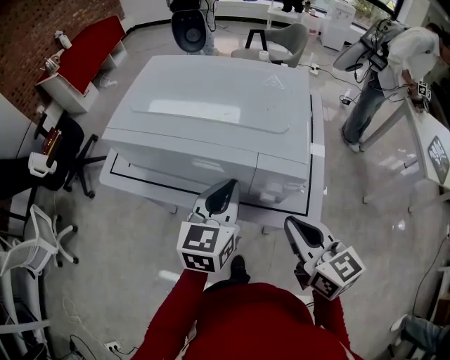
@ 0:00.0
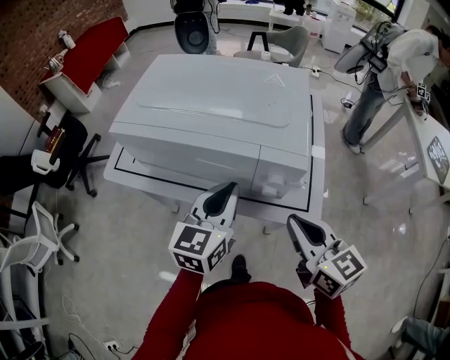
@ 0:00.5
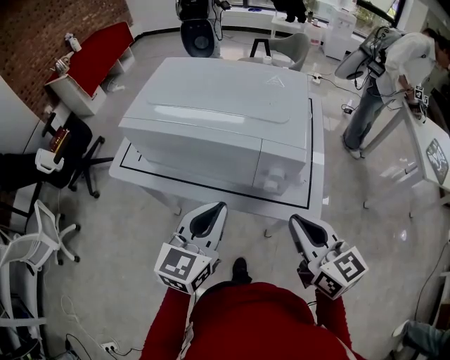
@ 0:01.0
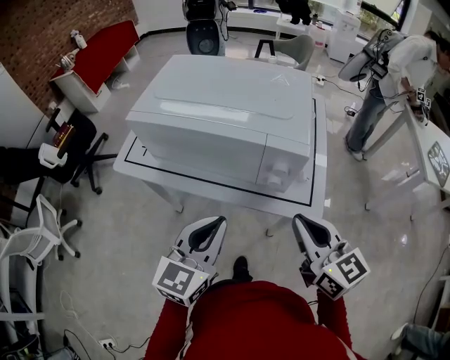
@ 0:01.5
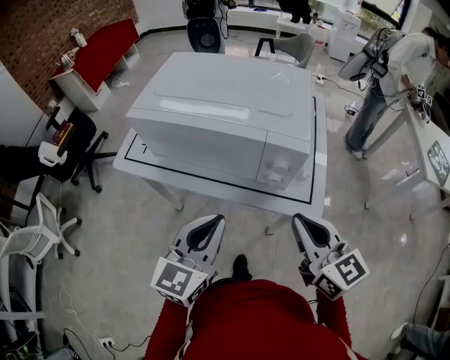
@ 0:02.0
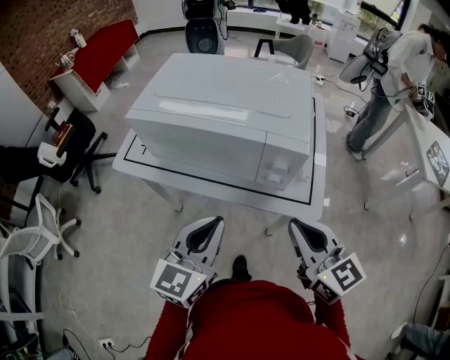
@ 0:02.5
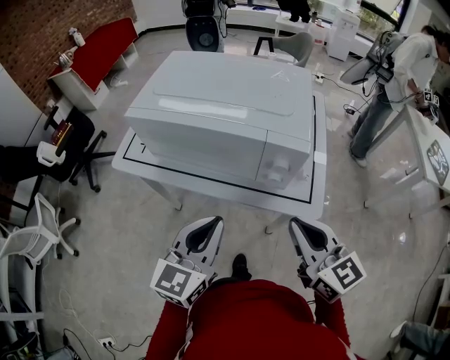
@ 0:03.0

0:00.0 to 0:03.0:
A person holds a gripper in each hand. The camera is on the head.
0:00.0 to 0:01.5: The left gripper moves backward, approximately 15 cm.
0:01.5 to 0:03.0: There are only small adjustments of the grippers.

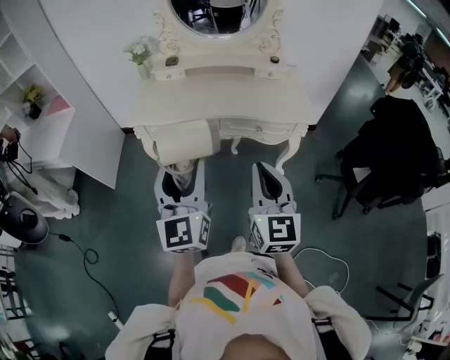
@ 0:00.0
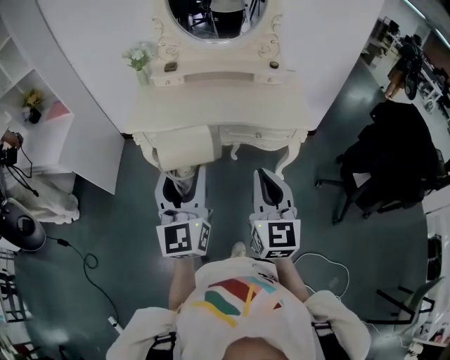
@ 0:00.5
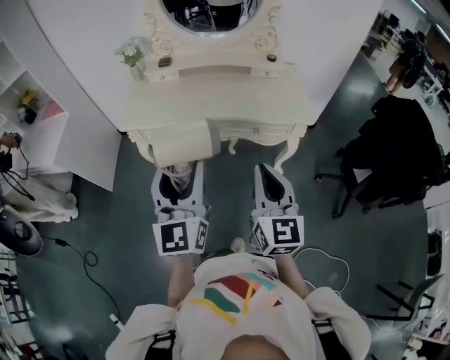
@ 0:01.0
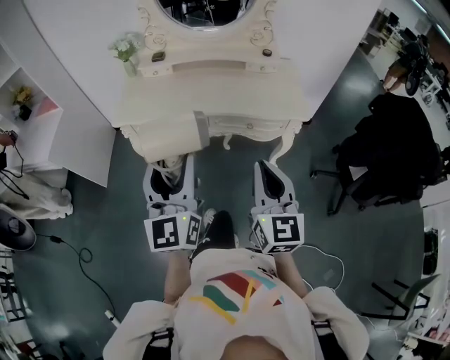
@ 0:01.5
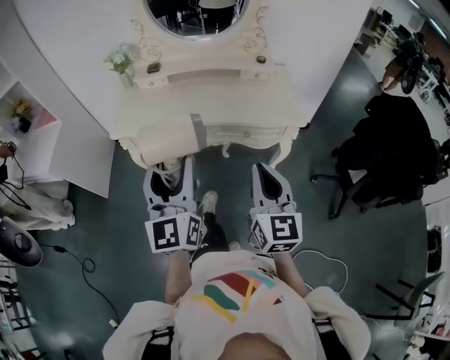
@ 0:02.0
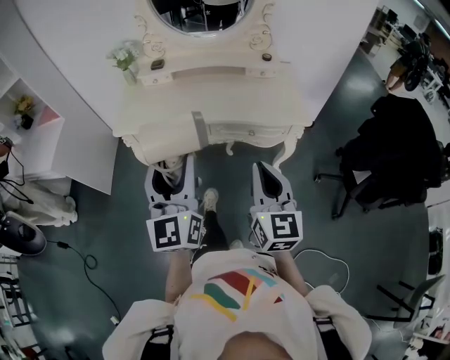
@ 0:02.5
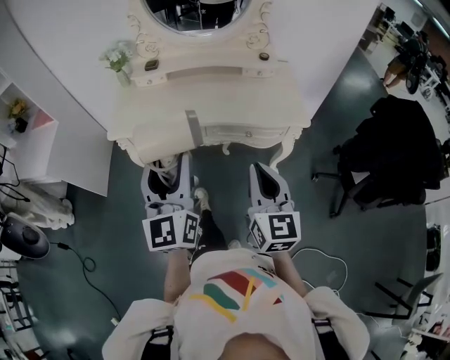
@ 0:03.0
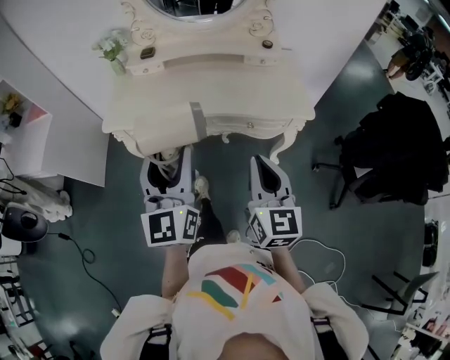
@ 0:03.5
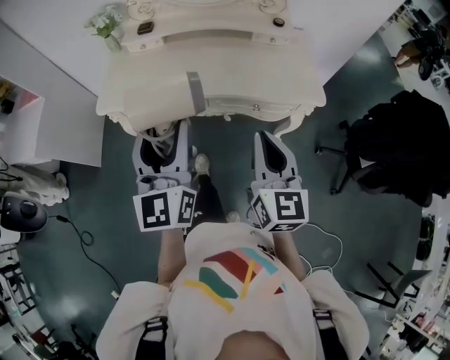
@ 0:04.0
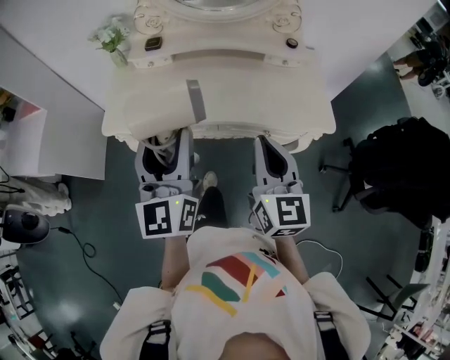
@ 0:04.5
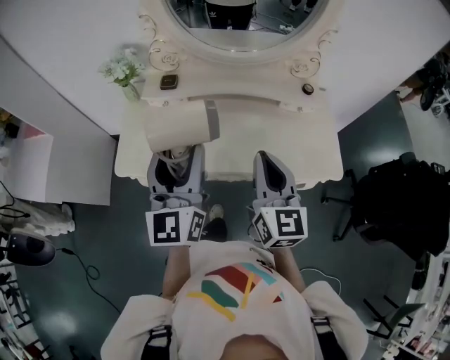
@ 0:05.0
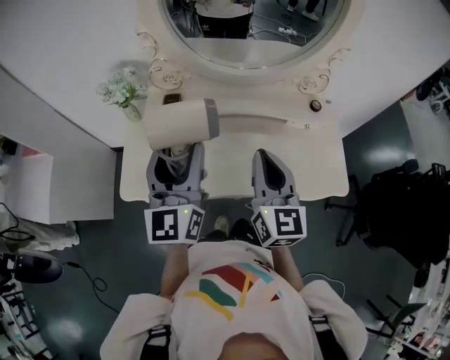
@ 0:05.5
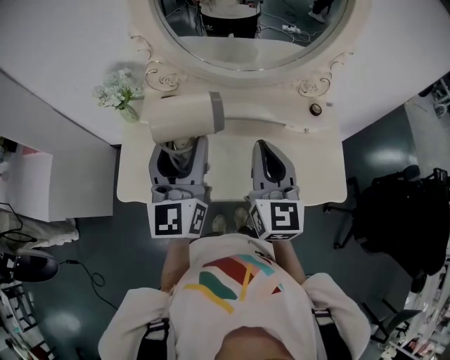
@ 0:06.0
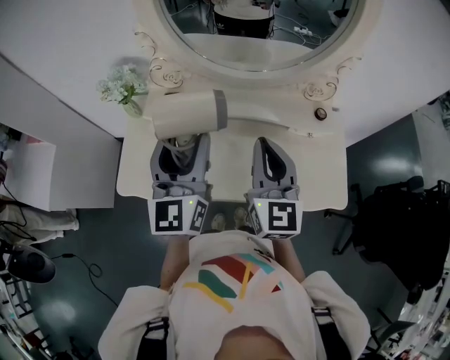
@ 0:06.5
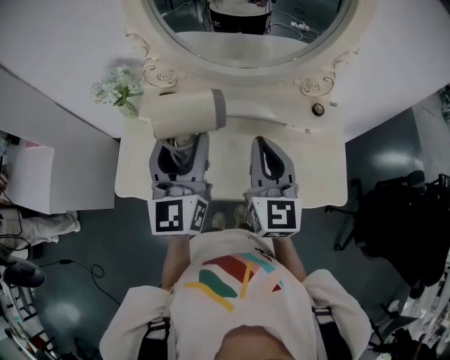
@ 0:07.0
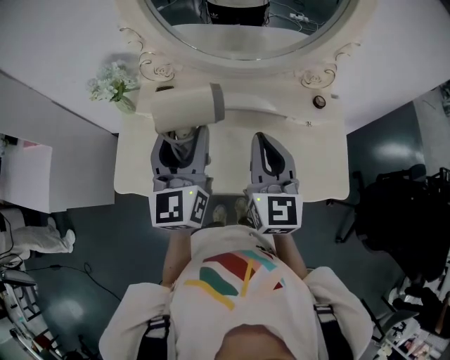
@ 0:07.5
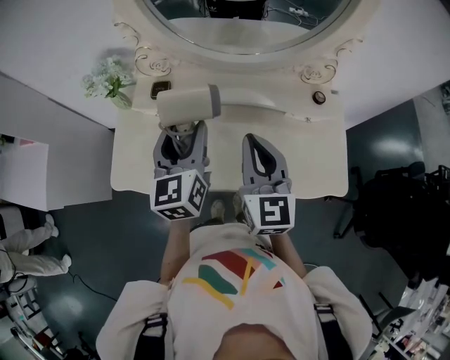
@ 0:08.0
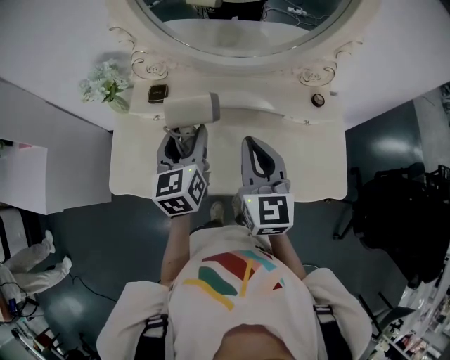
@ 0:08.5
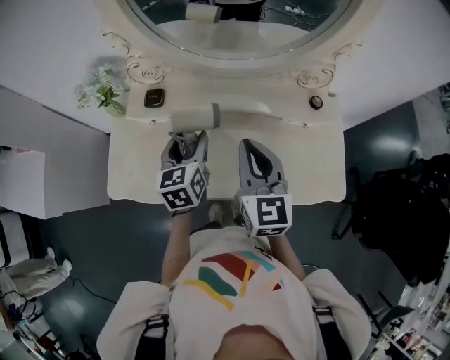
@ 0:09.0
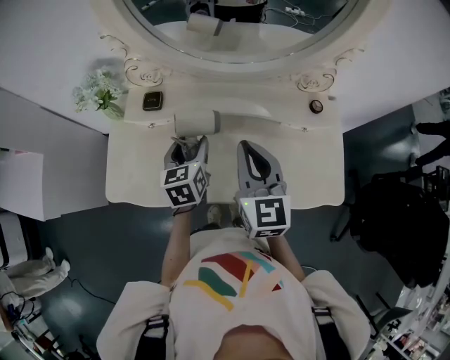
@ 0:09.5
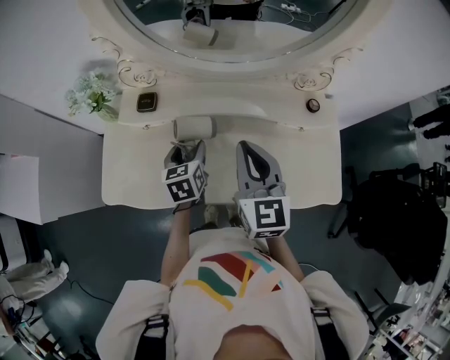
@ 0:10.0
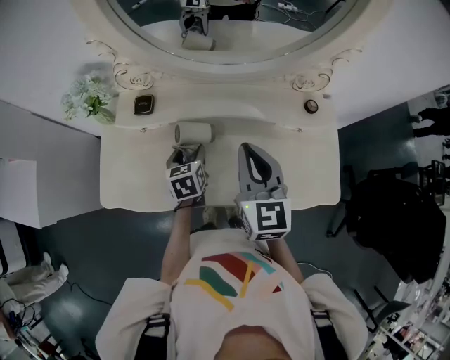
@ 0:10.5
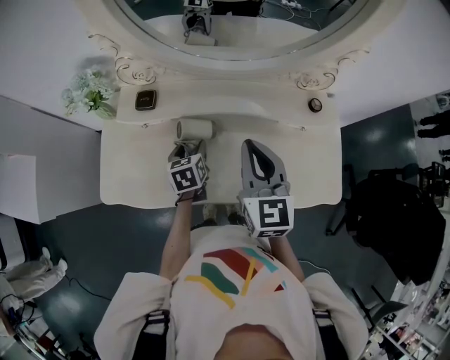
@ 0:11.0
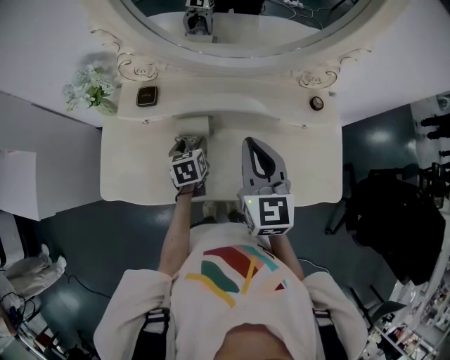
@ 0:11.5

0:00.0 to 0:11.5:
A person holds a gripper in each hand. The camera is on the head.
0:00.0 to 0:02.0: The left gripper moves forward, some 5 cm. The right gripper is displaced to the right by about 5 cm.
0:02.0 to 0:04.0: Both grippers travel together forward, about 10 cm.
0:04.0 to 0:06.0: The grippers both shift forward by roughly 35 cm.
0:06.0 to 0:07.5: There are only small adjustments of the grippers.
0:07.5 to 0:09.5: The right gripper shifts by some 5 cm; the left gripper shifts about 20 cm downward, and tips its fingers downward by some 40 degrees.
0:09.5 to 0:11.5: The left gripper is displaced downward by about 10 cm.

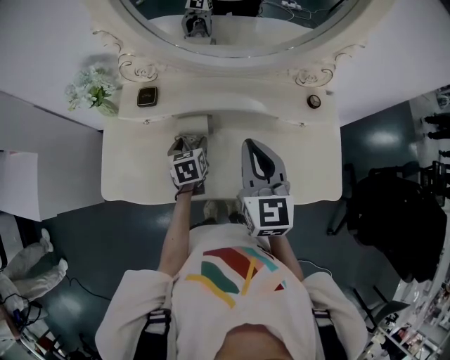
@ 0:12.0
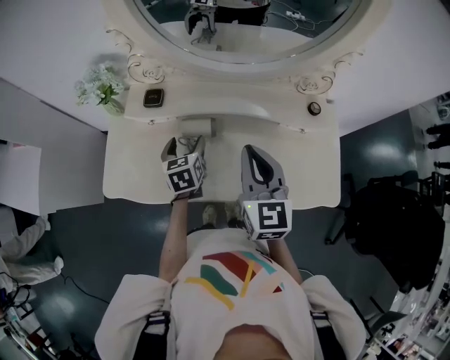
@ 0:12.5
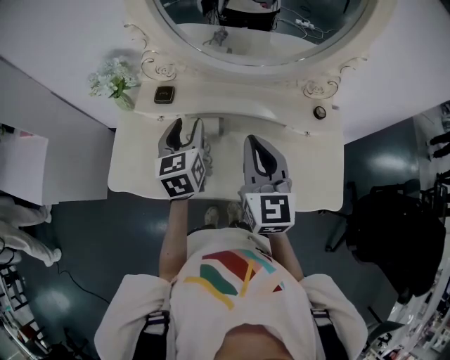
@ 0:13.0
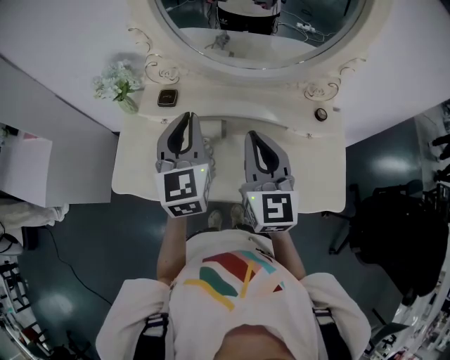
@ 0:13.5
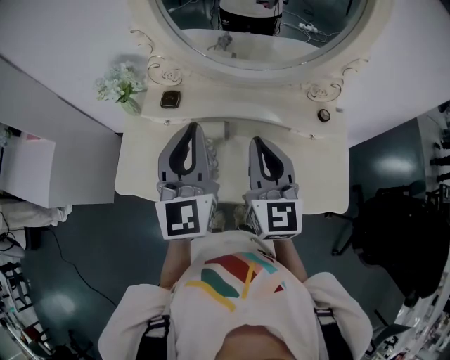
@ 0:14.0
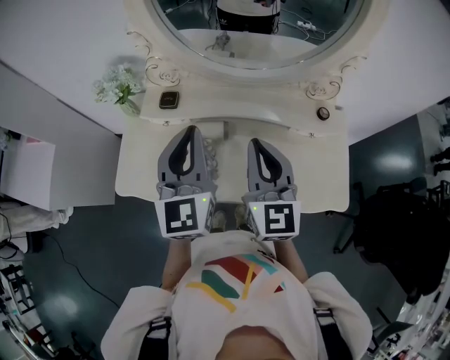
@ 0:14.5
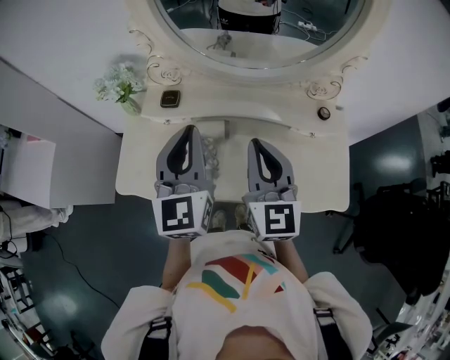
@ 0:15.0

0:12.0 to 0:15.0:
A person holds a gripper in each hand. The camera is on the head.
0:12.0 to 0:13.5: The left gripper moves upward, approximately 30 cm, tilts its fingers some 40 degrees upward, and closes up. The right gripper is displaced upward by roughly 5 cm.
0:13.5 to 0:15.0: The left gripper shifts by approximately 5 cm.

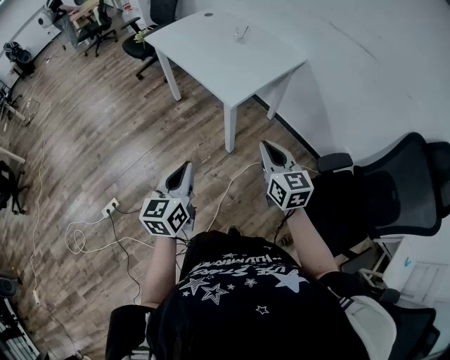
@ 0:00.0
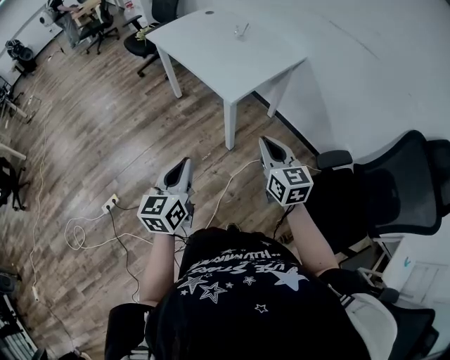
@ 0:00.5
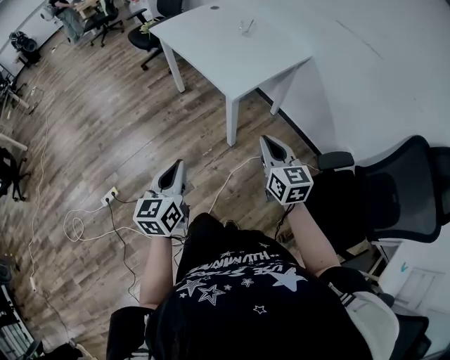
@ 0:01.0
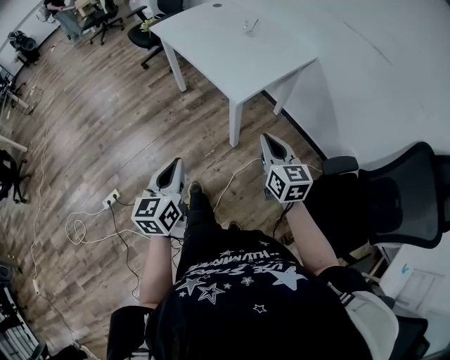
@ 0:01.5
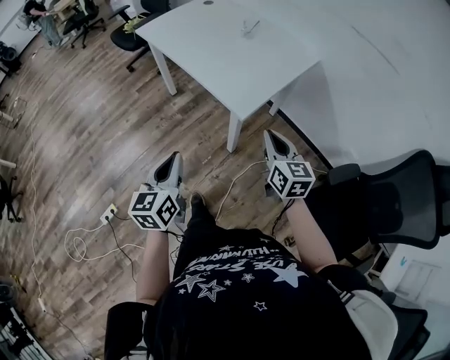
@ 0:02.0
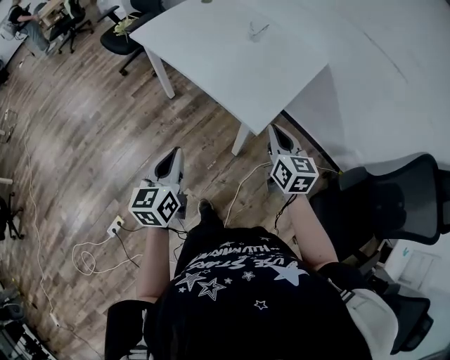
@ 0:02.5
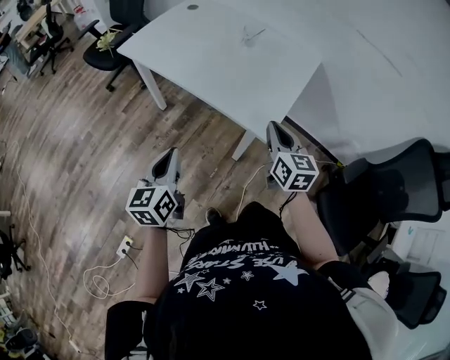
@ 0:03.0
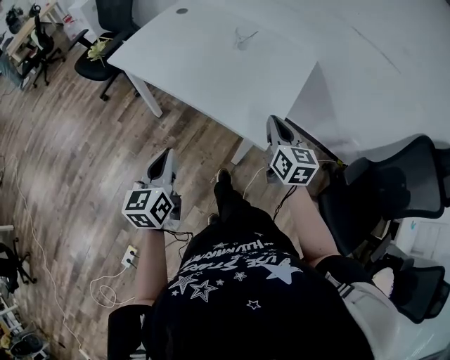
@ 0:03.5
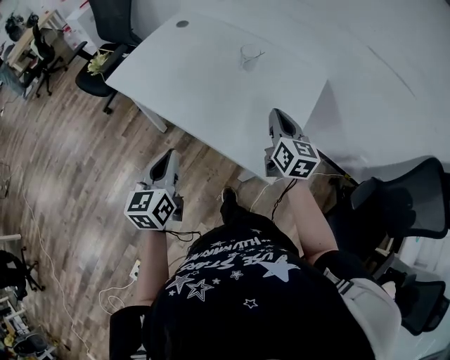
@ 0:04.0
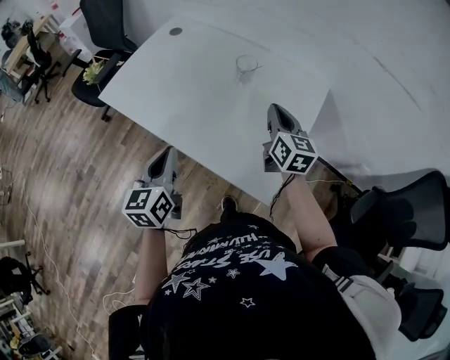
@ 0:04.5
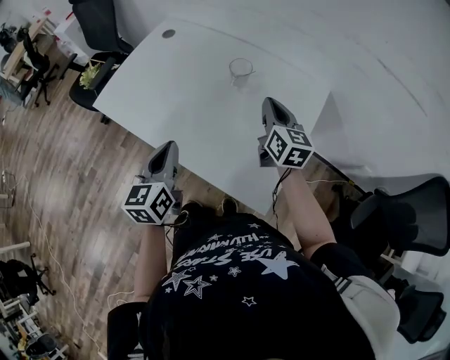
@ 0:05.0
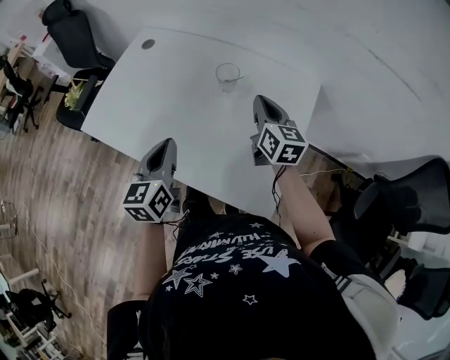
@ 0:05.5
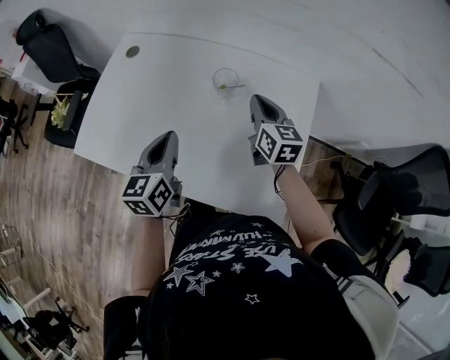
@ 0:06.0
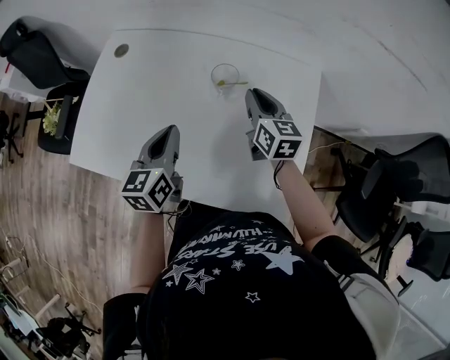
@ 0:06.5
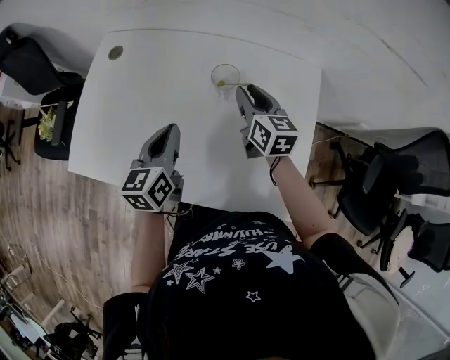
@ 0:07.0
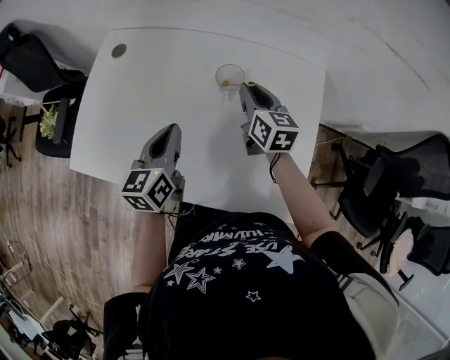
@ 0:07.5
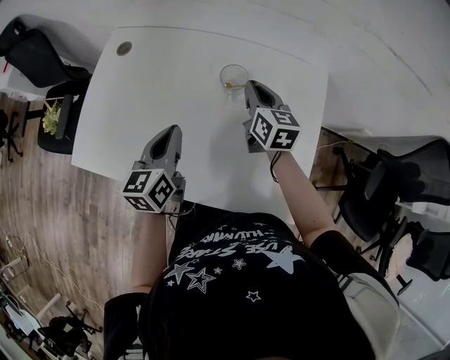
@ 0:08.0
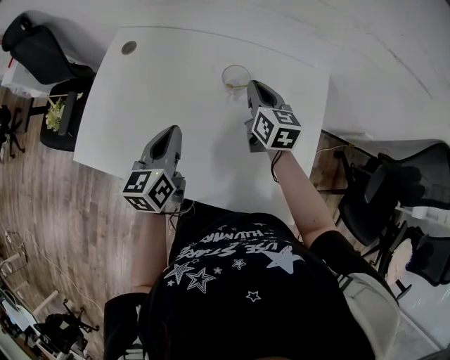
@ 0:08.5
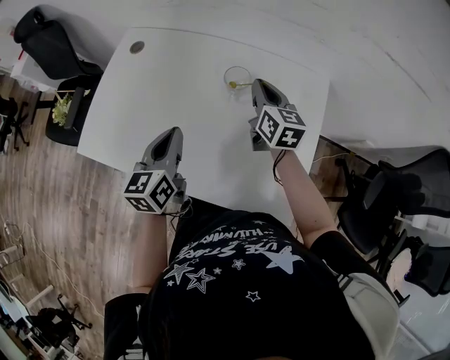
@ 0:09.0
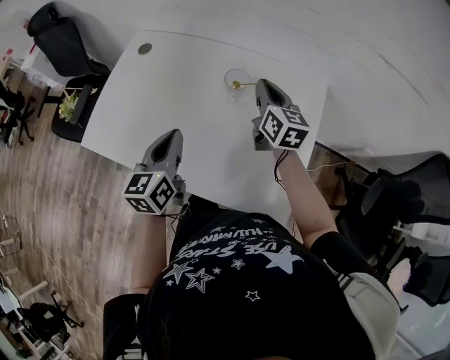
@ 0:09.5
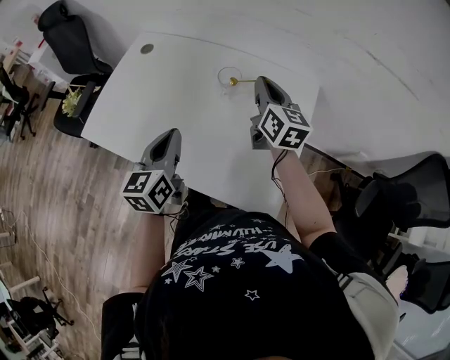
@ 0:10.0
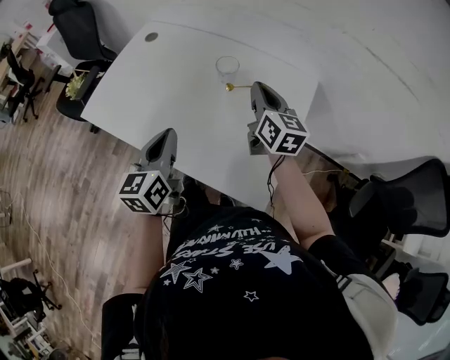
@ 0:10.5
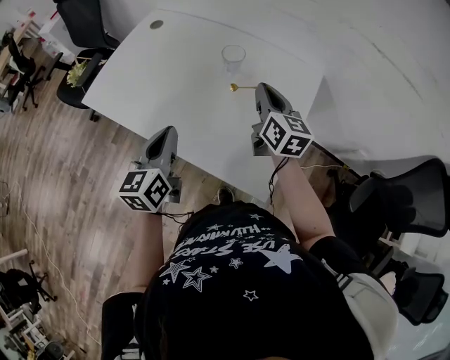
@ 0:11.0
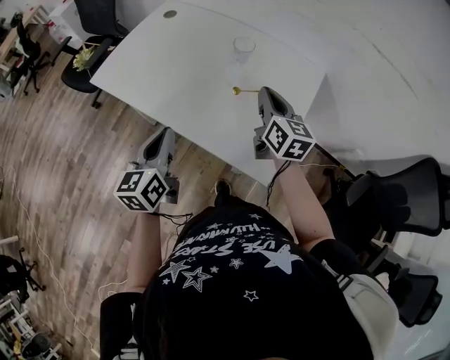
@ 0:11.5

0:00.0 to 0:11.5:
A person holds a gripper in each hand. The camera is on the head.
0:00.0 to 0:02.0: The left gripper shifts some 15 cm forward and to the left; the right gripper is displaced forward by some 15 cm.
0:02.0 to 0:04.0: The right gripper heads forward, covering roughly 30 cm, and rotates roughly 20 degrees; the left gripper shifts about 35 cm forward and to the left.
0:04.0 to 0:06.0: Both grippers move forward, approximately 25 cm.
0:06.0 to 0:07.5: The left gripper heads forward, covering about 5 cm. The right gripper moves roughly 5 cm.
0:07.5 to 0:09.5: The left gripper moves backward, approximately 5 cm; the right gripper moves upward, about 5 cm.
0:09.5 to 0:11.5: Both grippers travel together backward, some 20 cm.
